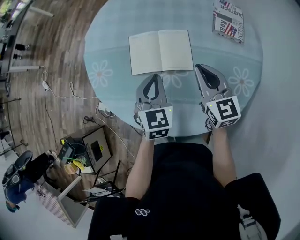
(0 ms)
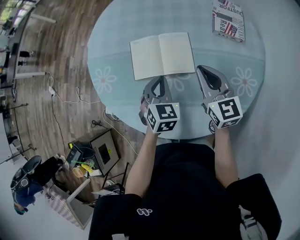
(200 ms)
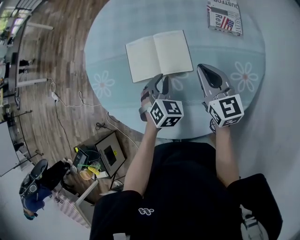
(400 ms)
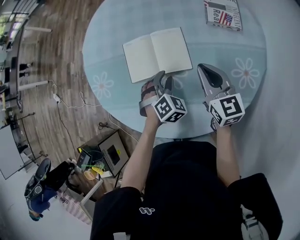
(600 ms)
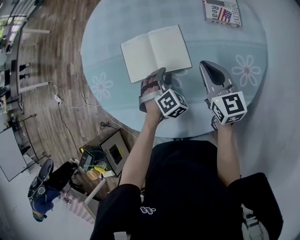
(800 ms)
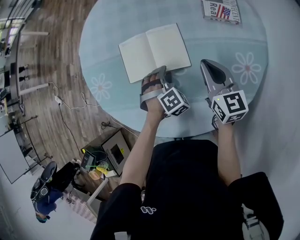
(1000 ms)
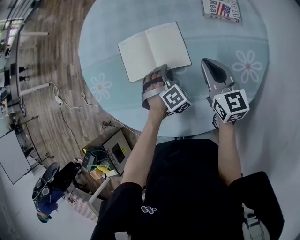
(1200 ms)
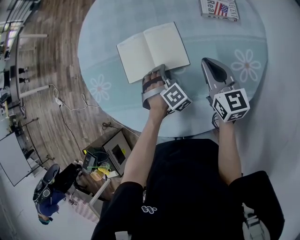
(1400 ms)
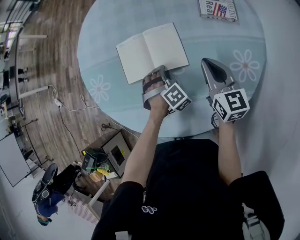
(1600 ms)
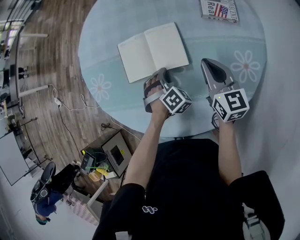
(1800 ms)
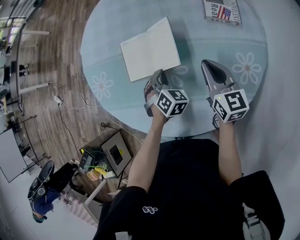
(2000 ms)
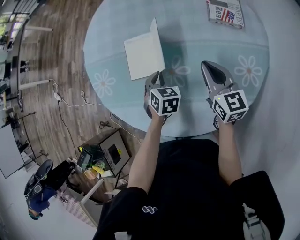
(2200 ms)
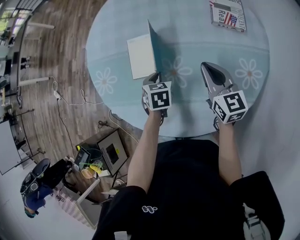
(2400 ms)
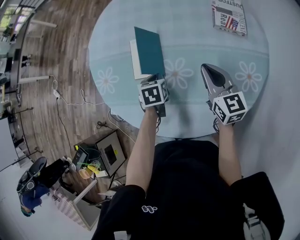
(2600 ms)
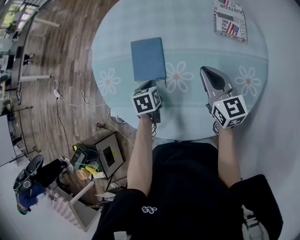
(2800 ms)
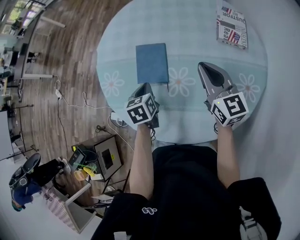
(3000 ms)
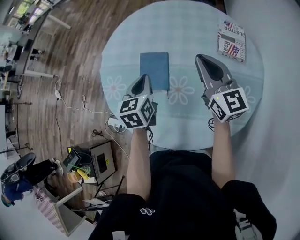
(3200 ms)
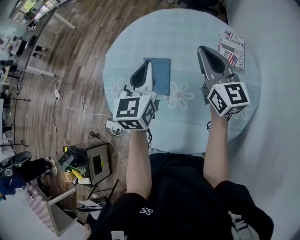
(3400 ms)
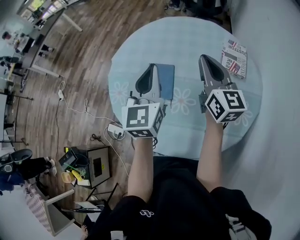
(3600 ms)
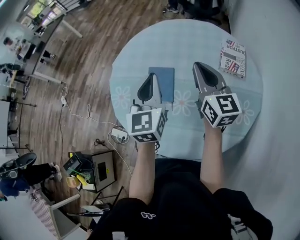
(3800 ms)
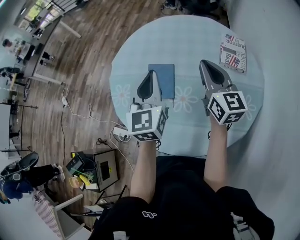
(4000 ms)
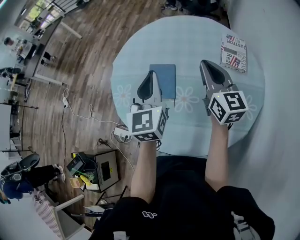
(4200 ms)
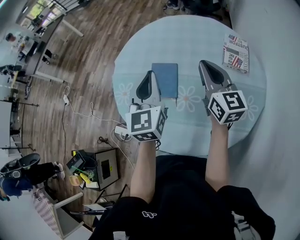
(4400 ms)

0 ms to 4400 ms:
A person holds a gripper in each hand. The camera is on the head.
0 ms to 1400 ms: The left gripper heads downward and to the right, covering roughly 20 cm, rolls clockwise, seen from behind, by about 60 degrees, and opens up. The right gripper goes approximately 10 cm to the right and downward.
1400 ms to 3000 ms: The left gripper is displaced to the left and upward by roughly 20 cm, rolls counterclockwise, seen from behind, by about 80 degrees, and closes up; the right gripper shifts some 10 cm upward and to the left.
3000 ms to 4400 ms: The left gripper moves upward, approximately 25 cm, and points its fingers some 40 degrees further upward, while the right gripper shifts about 10 cm upward.

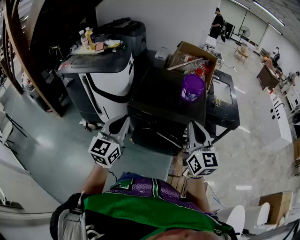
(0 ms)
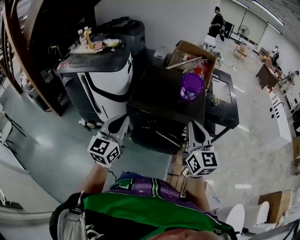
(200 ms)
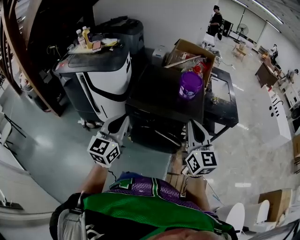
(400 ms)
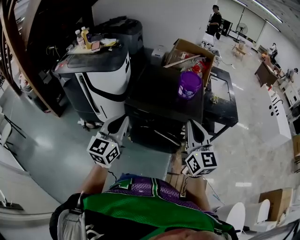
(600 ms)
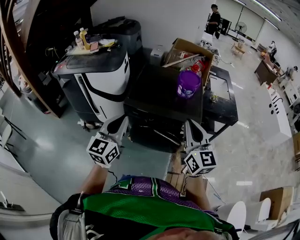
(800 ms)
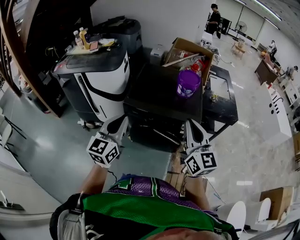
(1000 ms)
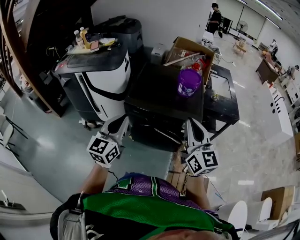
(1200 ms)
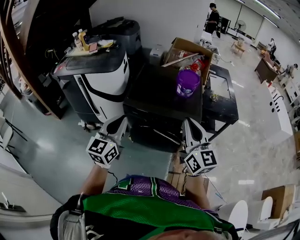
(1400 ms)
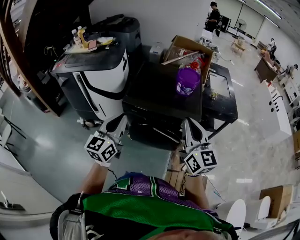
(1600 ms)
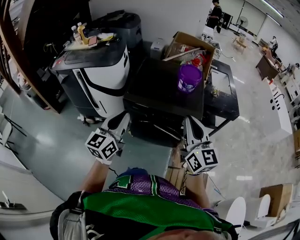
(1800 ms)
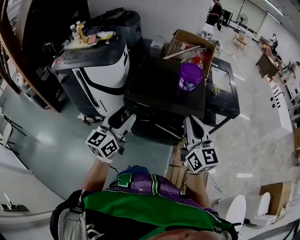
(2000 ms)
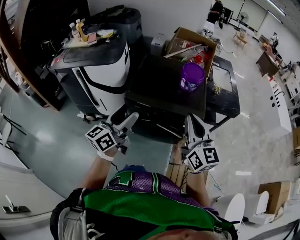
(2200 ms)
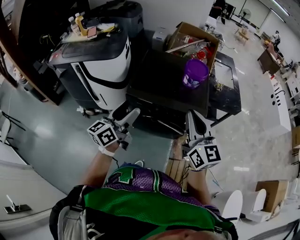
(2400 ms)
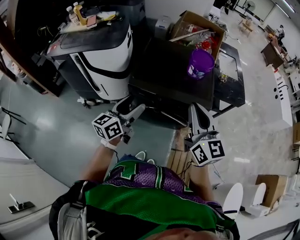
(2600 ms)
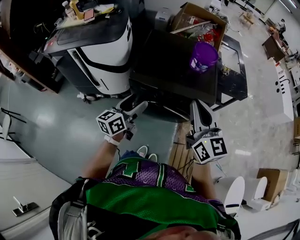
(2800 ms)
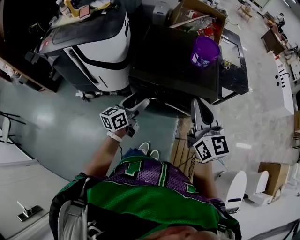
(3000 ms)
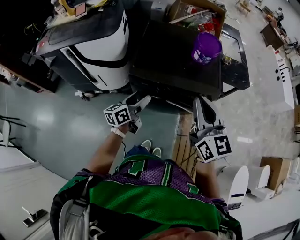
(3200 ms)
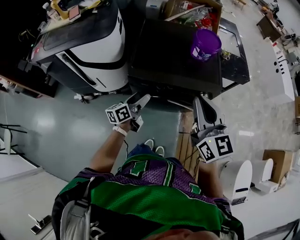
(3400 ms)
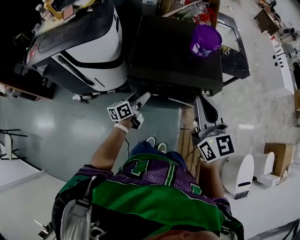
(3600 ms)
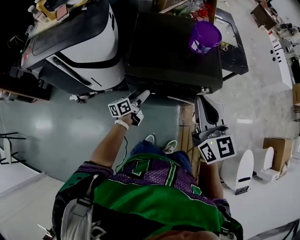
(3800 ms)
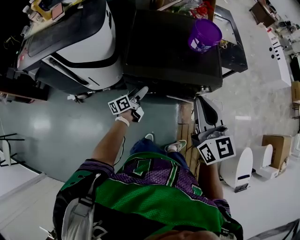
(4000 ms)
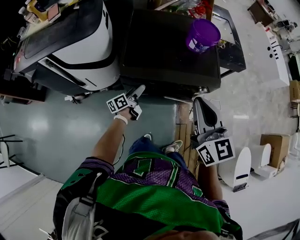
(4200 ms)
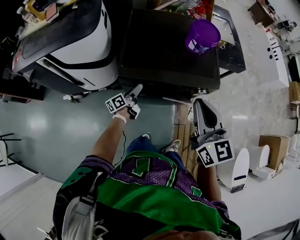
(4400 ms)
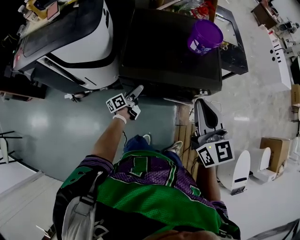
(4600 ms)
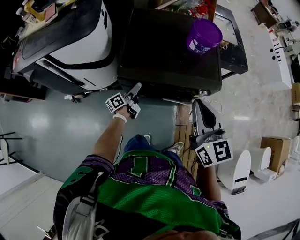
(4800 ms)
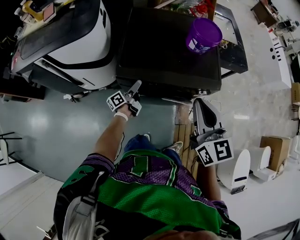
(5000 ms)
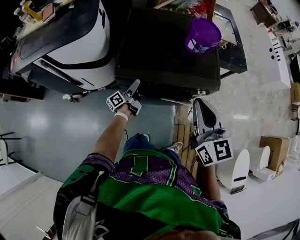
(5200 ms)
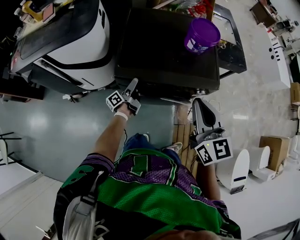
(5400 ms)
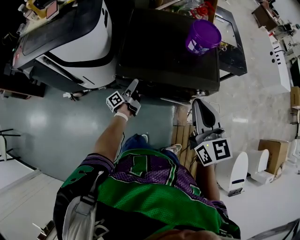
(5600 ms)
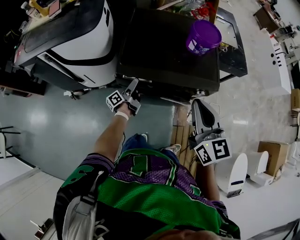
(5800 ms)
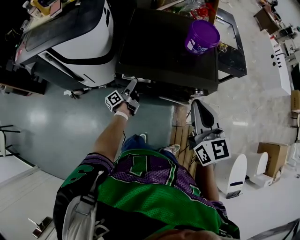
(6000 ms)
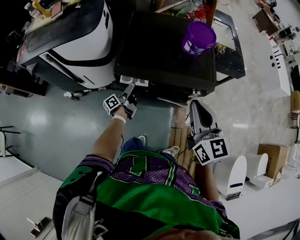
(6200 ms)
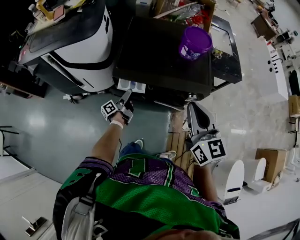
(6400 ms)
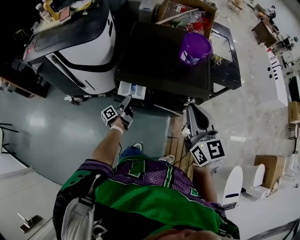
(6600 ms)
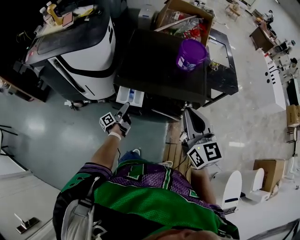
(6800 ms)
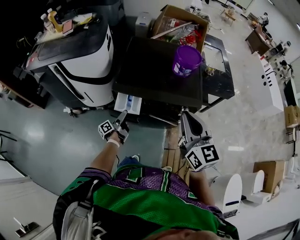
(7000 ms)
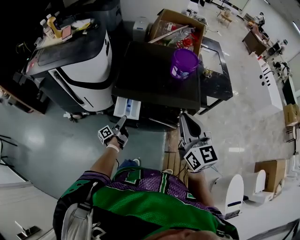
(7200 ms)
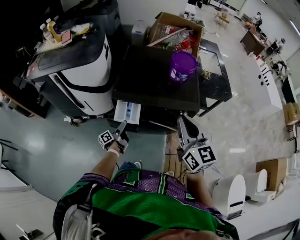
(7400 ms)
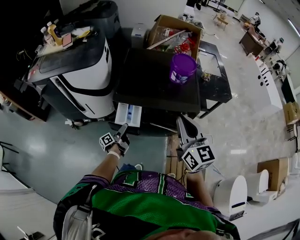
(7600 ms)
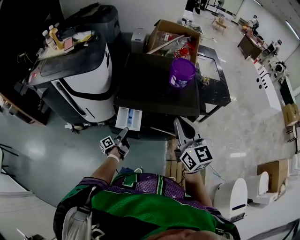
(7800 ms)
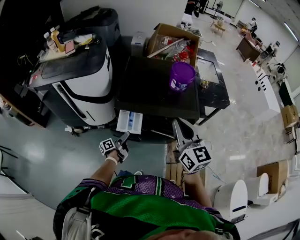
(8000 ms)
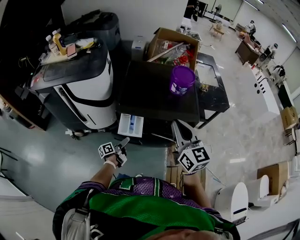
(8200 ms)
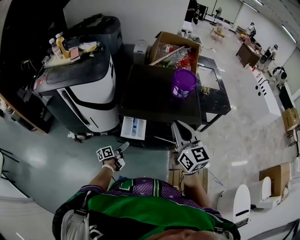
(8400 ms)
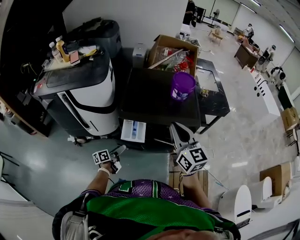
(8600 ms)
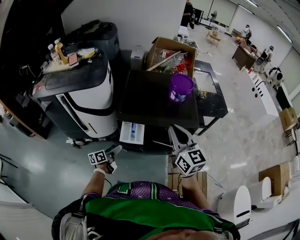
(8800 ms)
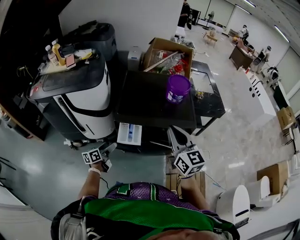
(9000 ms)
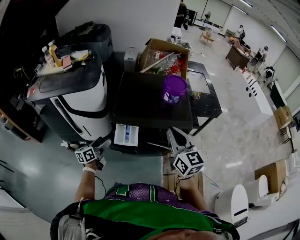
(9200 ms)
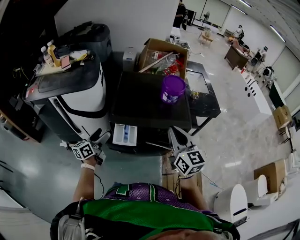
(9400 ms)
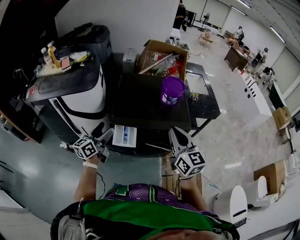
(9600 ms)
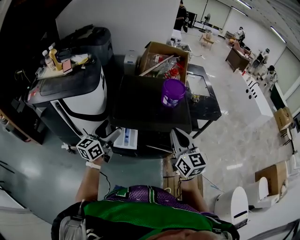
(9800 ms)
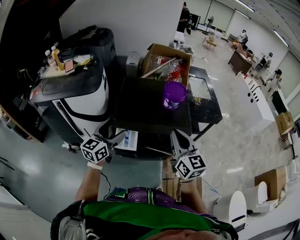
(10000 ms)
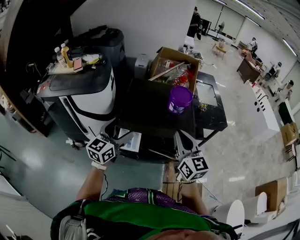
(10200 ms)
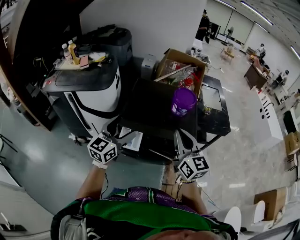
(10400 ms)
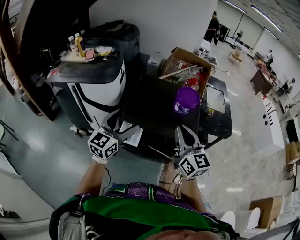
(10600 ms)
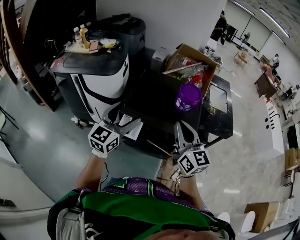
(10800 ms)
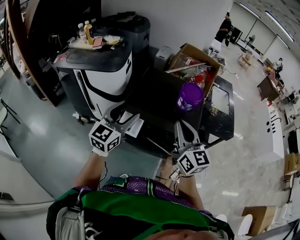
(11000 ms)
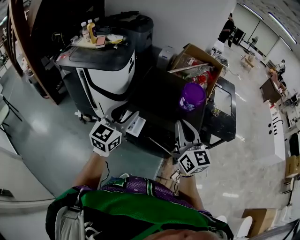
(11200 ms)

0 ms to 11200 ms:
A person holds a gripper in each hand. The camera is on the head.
0 ms to 1600 ms: The grippers make only small movements.
1600 ms to 3200 ms: The left gripper is displaced downward and forward by about 25 cm, changes its angle by some 40 degrees, and opens; the right gripper shifts approximately 15 cm to the left and forward.
3200 ms to 4800 ms: The right gripper is displaced downward by roughly 5 cm, while the left gripper goes approximately 25 cm downward and forward, and swivels approximately 30 degrees.
4800 ms to 6400 ms: The right gripper changes place by approximately 5 cm.
6400 ms to 8000 ms: The right gripper ends up some 5 cm from where it was. The left gripper heads backward, covering about 10 cm.
8000 ms to 9600 ms: The left gripper shifts roughly 30 cm upward, and rotates around the line of its fingers by approximately 50 degrees, clockwise from behind.
9600 ms to 11200 ms: The left gripper goes approximately 20 cm upward and to the right, swivels roughly 40 degrees, and closes up. Meanwhile the right gripper is displaced upward by about 5 cm.

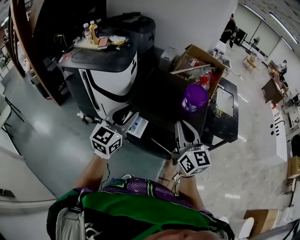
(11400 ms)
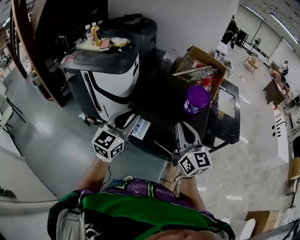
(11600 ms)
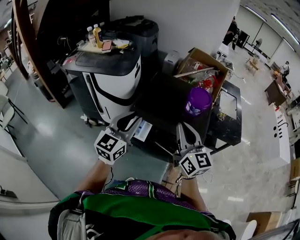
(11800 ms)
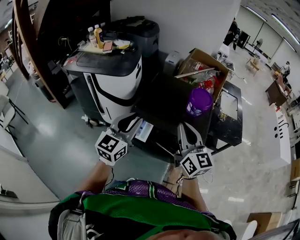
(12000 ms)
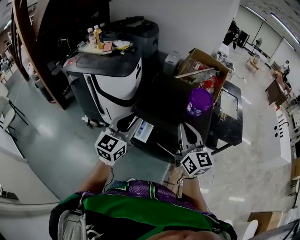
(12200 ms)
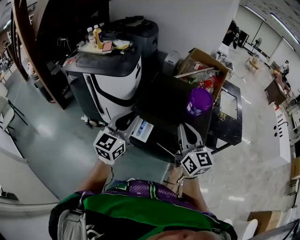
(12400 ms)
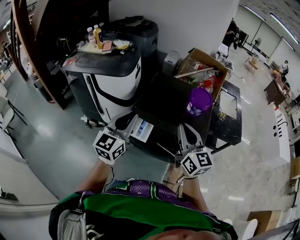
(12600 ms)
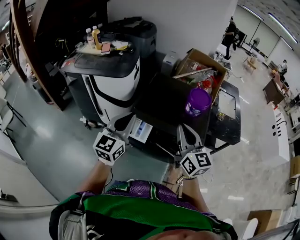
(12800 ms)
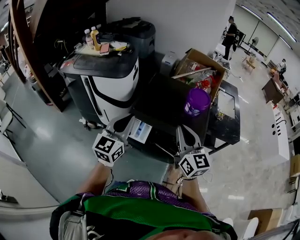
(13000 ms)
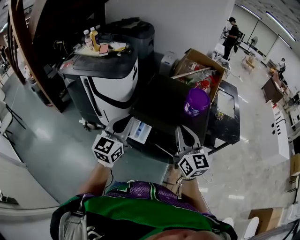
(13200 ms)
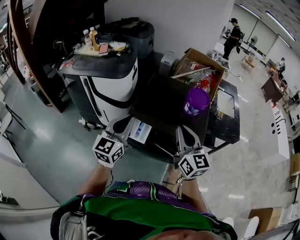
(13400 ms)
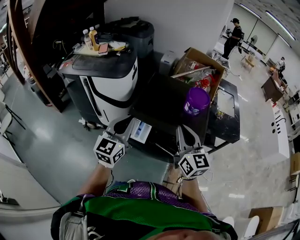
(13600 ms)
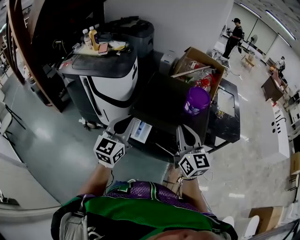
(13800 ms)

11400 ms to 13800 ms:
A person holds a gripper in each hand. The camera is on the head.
11400 ms to 13800 ms: The grippers stay close to where they were, moving slightly.

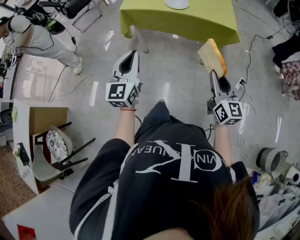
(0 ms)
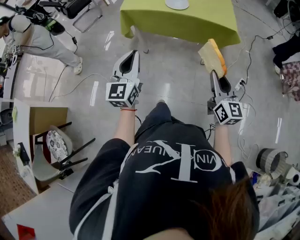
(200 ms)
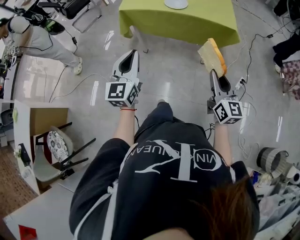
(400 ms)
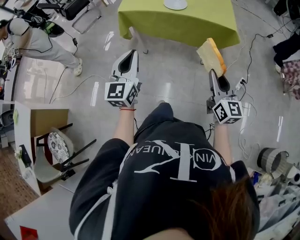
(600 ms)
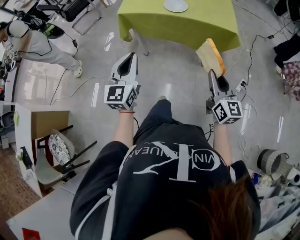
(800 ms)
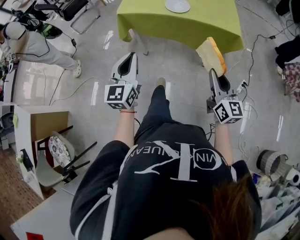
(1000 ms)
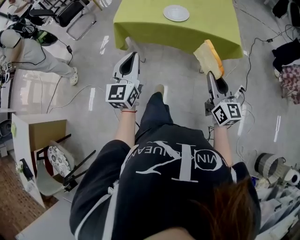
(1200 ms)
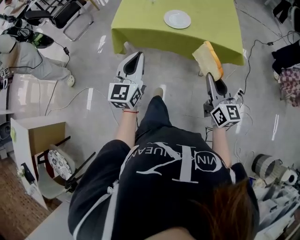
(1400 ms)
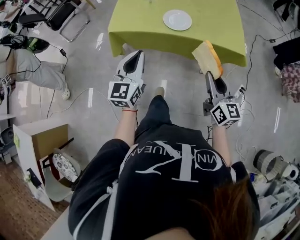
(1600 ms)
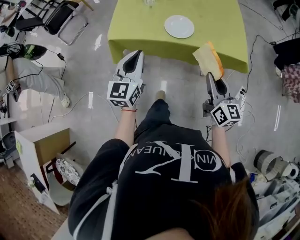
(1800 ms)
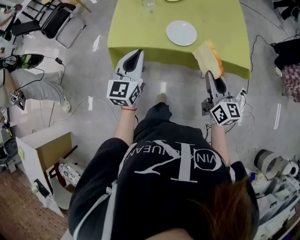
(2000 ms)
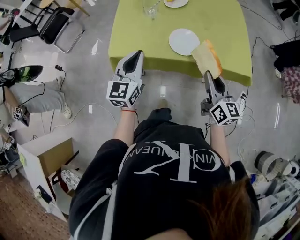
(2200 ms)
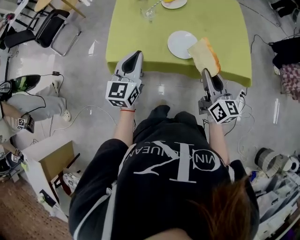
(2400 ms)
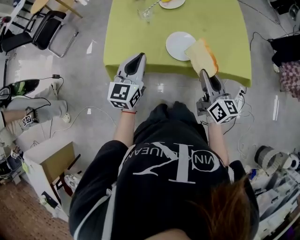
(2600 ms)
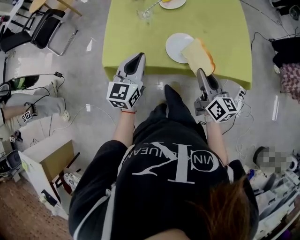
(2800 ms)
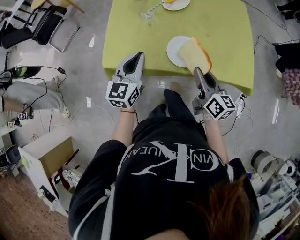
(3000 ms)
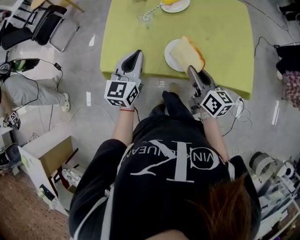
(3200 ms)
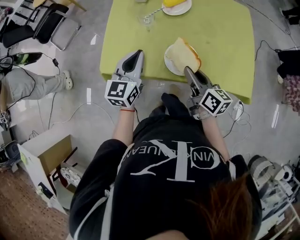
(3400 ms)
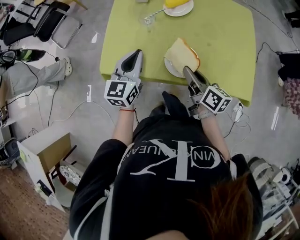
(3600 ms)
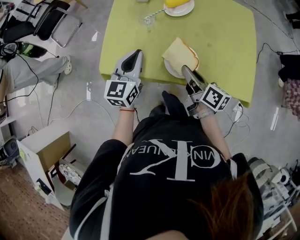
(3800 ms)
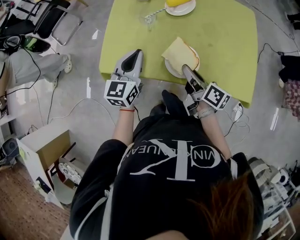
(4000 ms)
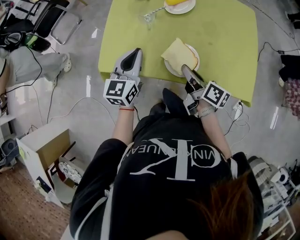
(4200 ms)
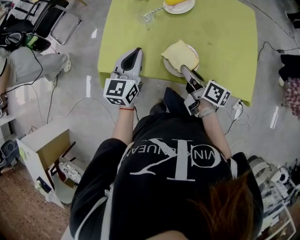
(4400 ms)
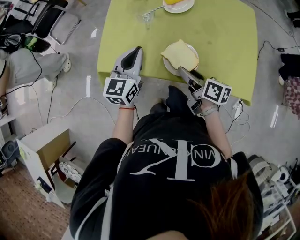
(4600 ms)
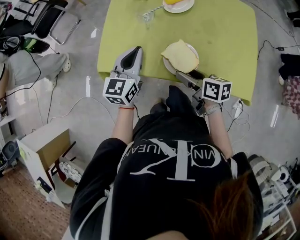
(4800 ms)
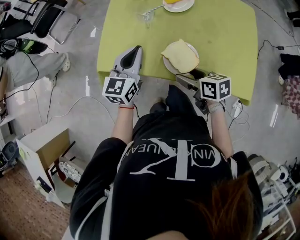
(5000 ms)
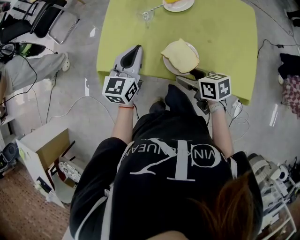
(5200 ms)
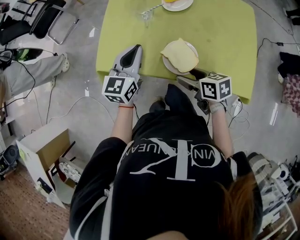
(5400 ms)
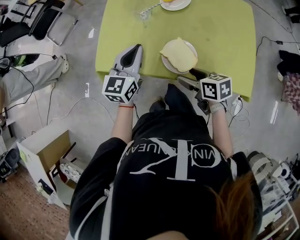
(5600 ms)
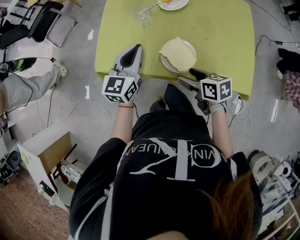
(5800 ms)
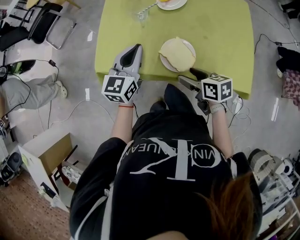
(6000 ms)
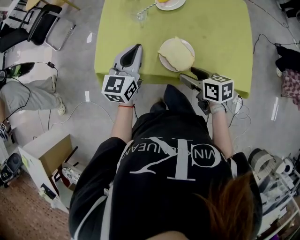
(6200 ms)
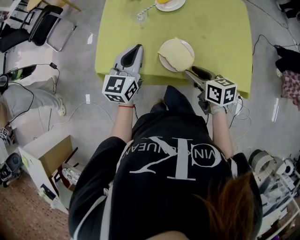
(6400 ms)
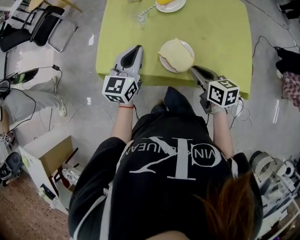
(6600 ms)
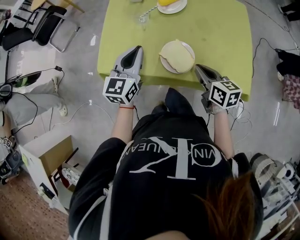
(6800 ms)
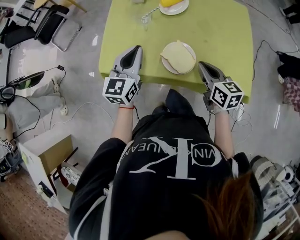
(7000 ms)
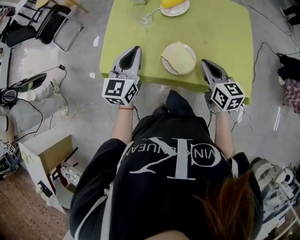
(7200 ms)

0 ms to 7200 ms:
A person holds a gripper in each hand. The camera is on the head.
0 ms to 1400 ms: Both grippers move forward, about 20 cm.
1400 ms to 2800 ms: Both grippers move forward, roughly 25 cm.
2800 ms to 4400 ms: The left gripper heads forward, covering approximately 5 cm. The right gripper travels forward and downward by roughly 10 cm, and swivels some 40 degrees.
4400 ms to 5800 ms: The right gripper turns by about 40 degrees, and opens its fingers.
5800 ms to 7200 ms: The right gripper is displaced upward and to the right by about 10 cm, changes its angle by approximately 30 degrees, and closes up.
